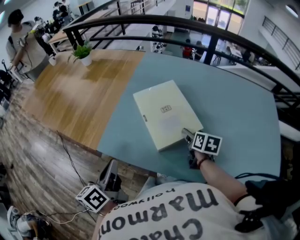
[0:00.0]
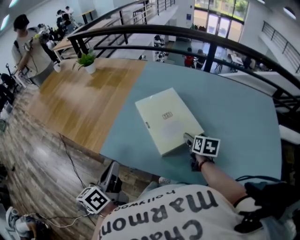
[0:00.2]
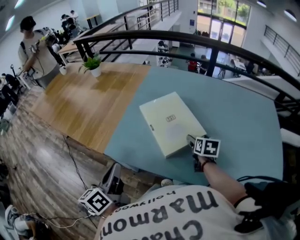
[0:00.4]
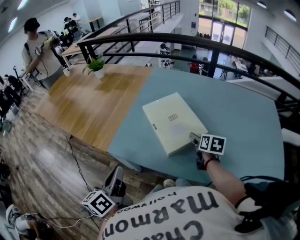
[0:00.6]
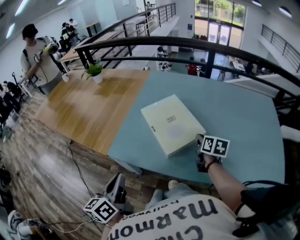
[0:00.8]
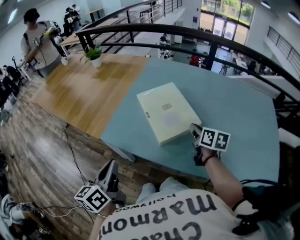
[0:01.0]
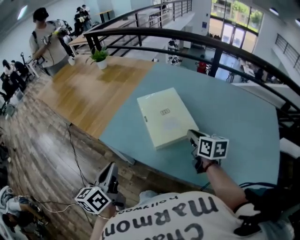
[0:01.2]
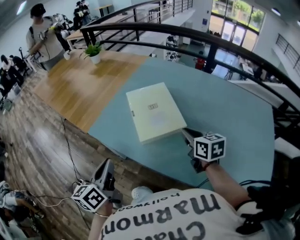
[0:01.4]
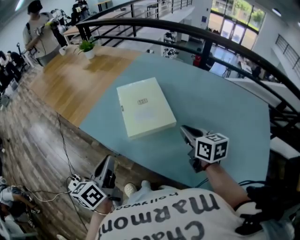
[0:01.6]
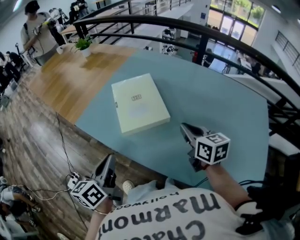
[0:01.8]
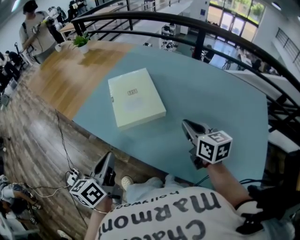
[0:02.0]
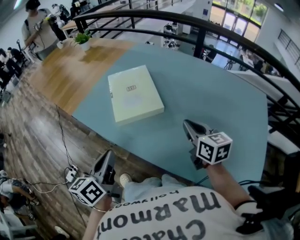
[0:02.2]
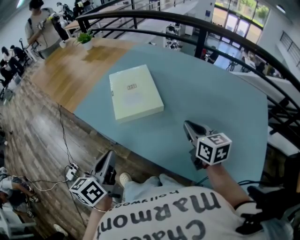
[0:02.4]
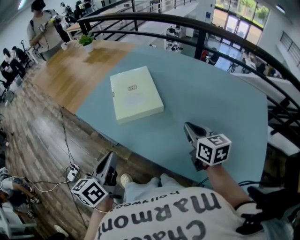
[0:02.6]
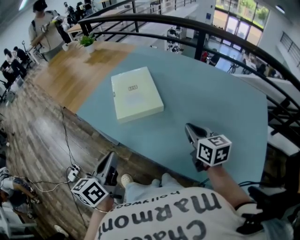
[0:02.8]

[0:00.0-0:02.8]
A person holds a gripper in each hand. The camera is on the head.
0:00.0 to 0:01.4: The left gripper shifts approximately 15 cm to the right and backward; the right gripper heads upward and backward, covering approximately 10 cm, changes its angle by approximately 30 degrees, and closes its fingers.
0:01.4 to 0:02.8: The two grippers go about 15 cm to the right and backward.

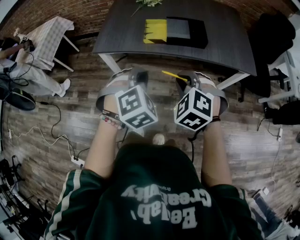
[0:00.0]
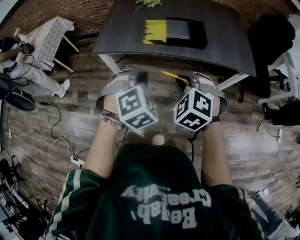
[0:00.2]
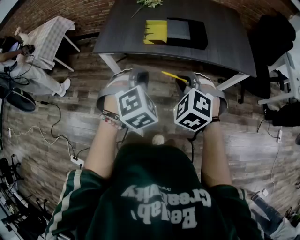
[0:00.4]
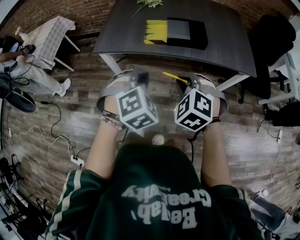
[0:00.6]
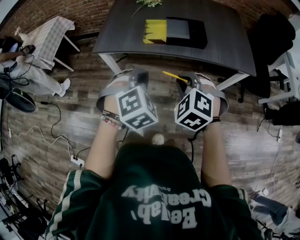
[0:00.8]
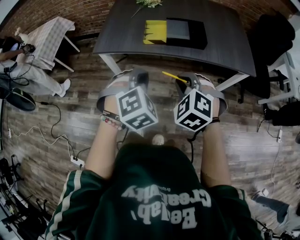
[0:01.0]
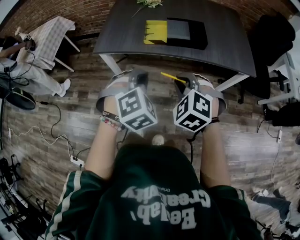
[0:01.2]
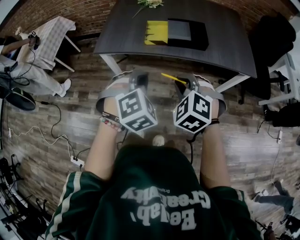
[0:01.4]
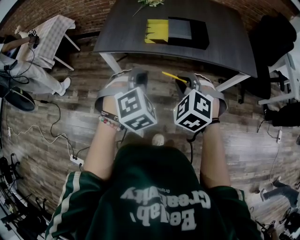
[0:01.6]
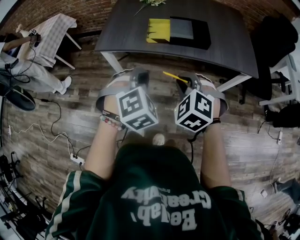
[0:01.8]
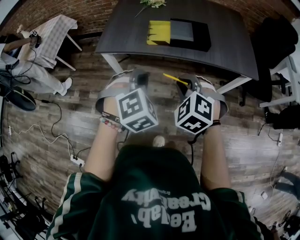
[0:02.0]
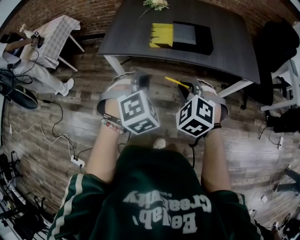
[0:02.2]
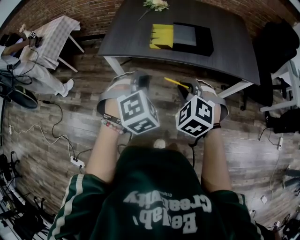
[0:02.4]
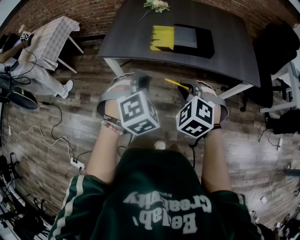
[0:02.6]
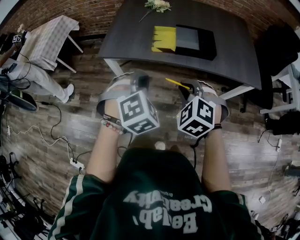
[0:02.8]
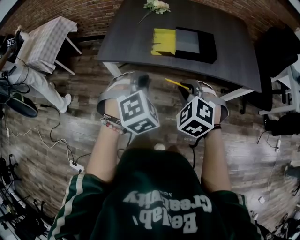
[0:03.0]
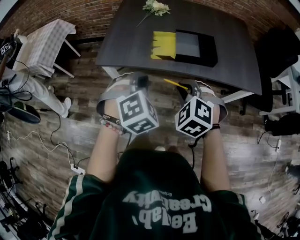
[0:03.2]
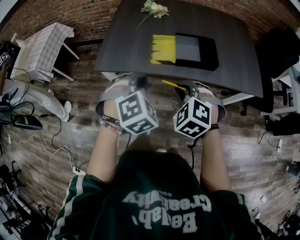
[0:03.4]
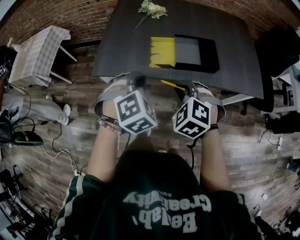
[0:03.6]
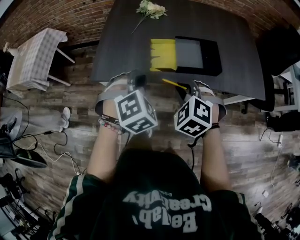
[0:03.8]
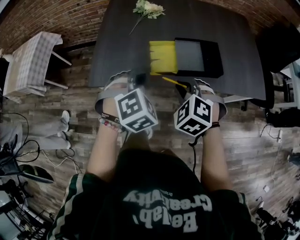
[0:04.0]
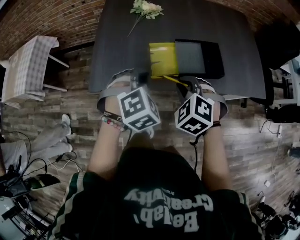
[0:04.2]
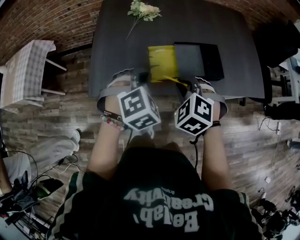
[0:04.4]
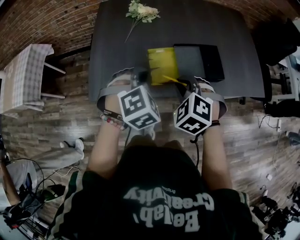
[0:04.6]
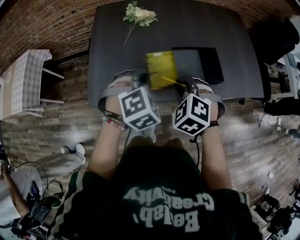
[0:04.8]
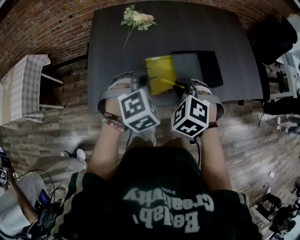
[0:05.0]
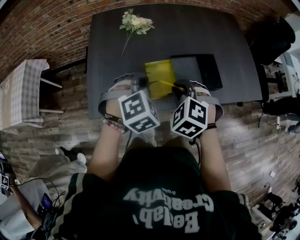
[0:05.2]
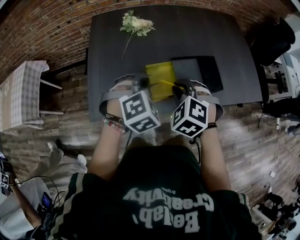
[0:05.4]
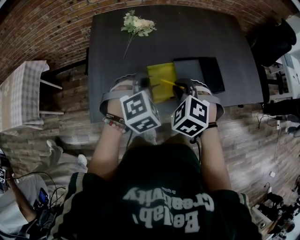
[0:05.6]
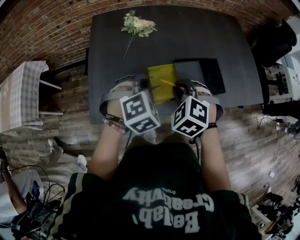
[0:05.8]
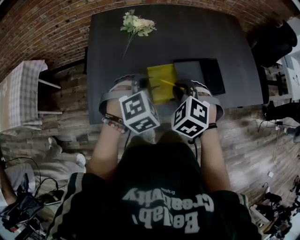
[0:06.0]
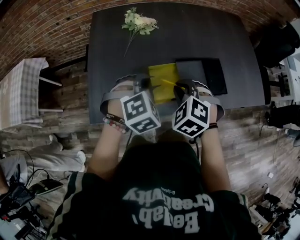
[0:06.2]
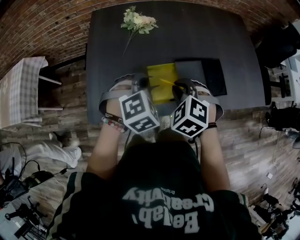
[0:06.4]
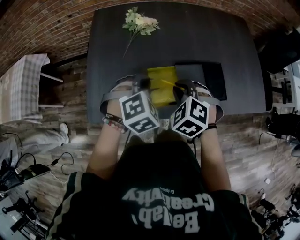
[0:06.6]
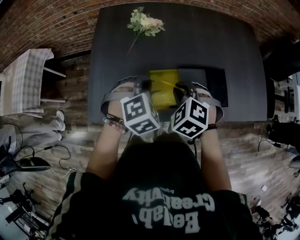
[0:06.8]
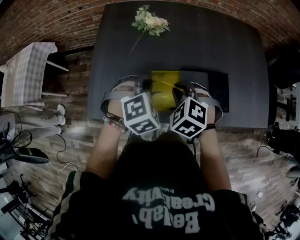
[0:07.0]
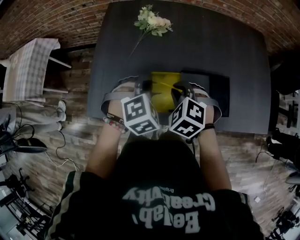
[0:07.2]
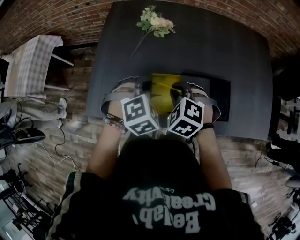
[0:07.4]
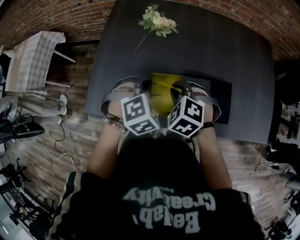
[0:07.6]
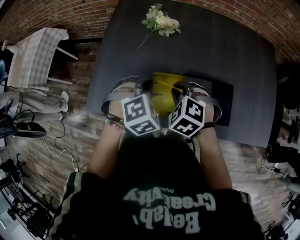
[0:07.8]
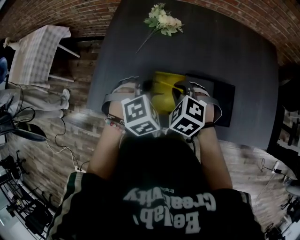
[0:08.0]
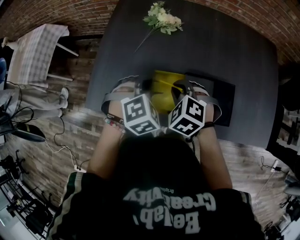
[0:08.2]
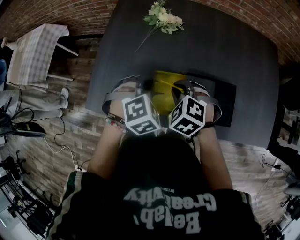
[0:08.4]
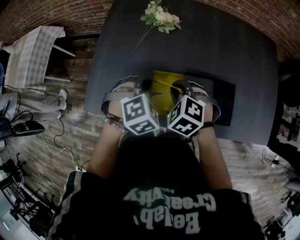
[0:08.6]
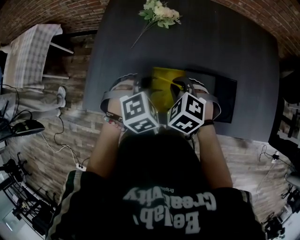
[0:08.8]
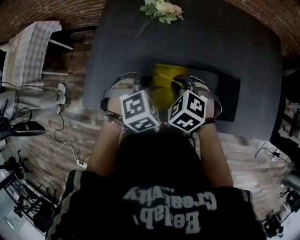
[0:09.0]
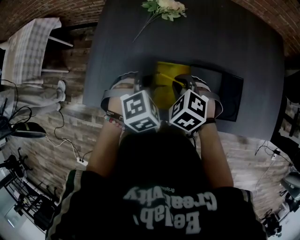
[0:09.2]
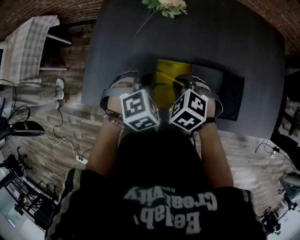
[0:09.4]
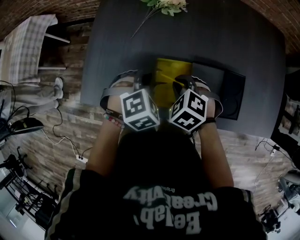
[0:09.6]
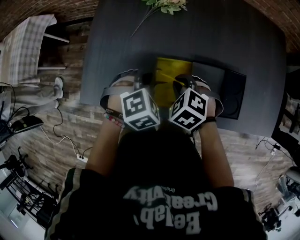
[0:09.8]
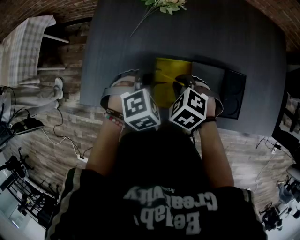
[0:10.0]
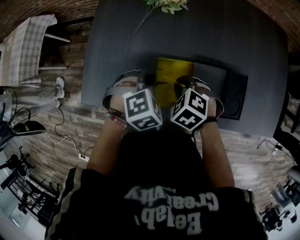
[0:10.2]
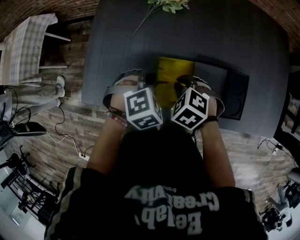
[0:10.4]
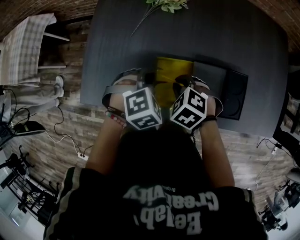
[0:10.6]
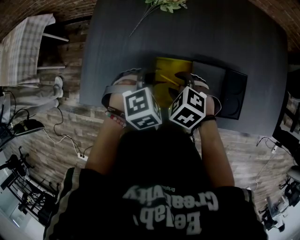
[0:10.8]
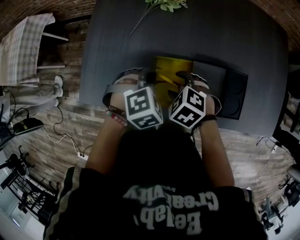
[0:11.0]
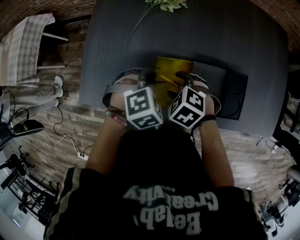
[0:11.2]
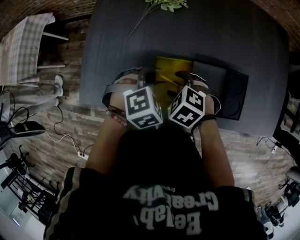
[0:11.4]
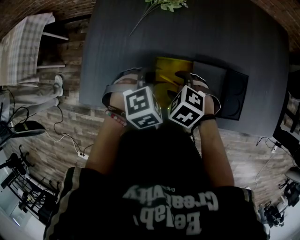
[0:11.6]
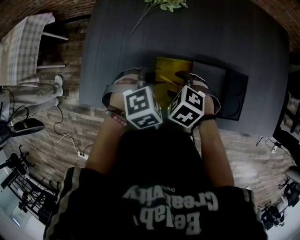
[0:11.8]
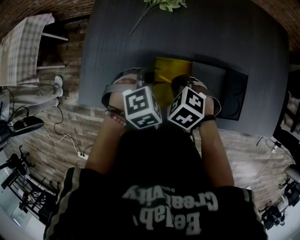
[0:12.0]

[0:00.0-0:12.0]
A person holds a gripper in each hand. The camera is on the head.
0:00.0 to 0:01.6: Both grippers stay about where they are.
0:01.6 to 0:03.0: The grippers both shift forward by approximately 5 cm.
0:03.0 to 0:04.4: The two grippers go about 25 cm forward.
0:04.4 to 0:06.0: Both grippers move forward, about 10 cm.
0:06.0 to 0:07.6: The right gripper shifts about 10 cm forward and downward, while the left gripper travels forward by about 5 cm.
0:07.6 to 0:09.0: There are only small adjustments of the grippers.
0:09.0 to 0:10.4: The right gripper is displaced downward by some 5 cm.
0:10.4 to 0:12.0: The right gripper opens, then closes once more.

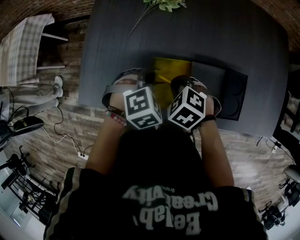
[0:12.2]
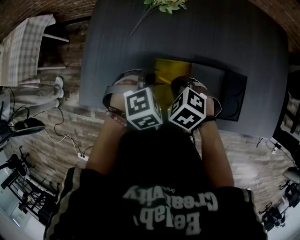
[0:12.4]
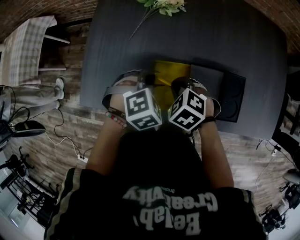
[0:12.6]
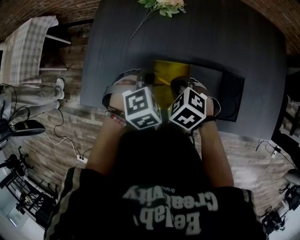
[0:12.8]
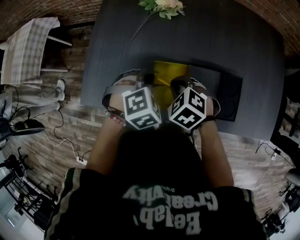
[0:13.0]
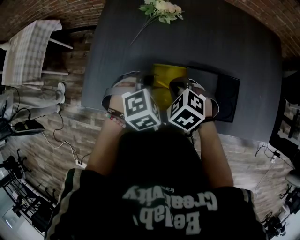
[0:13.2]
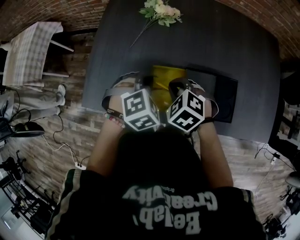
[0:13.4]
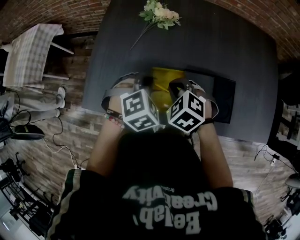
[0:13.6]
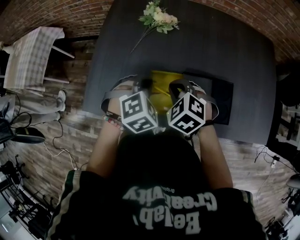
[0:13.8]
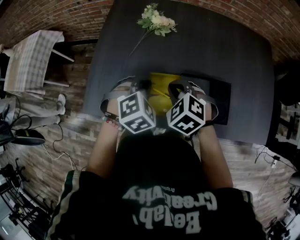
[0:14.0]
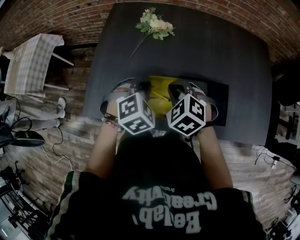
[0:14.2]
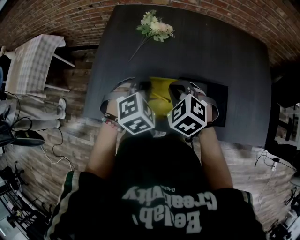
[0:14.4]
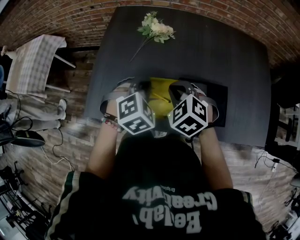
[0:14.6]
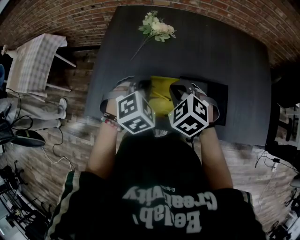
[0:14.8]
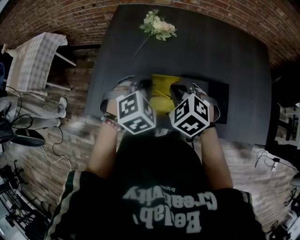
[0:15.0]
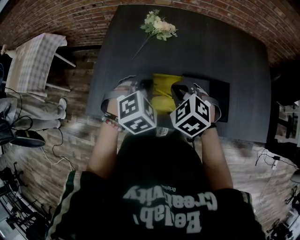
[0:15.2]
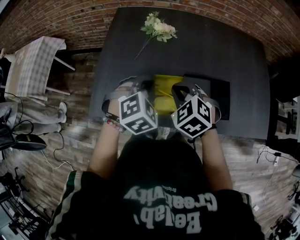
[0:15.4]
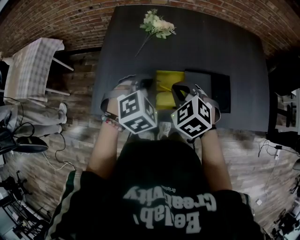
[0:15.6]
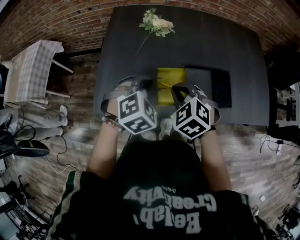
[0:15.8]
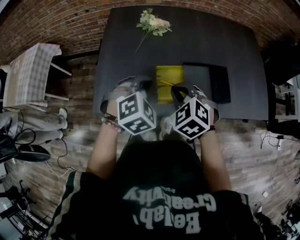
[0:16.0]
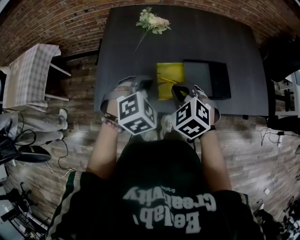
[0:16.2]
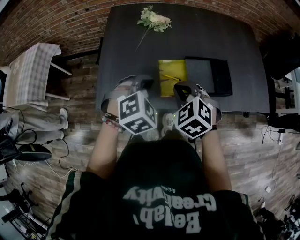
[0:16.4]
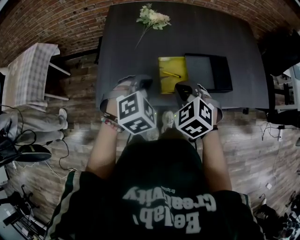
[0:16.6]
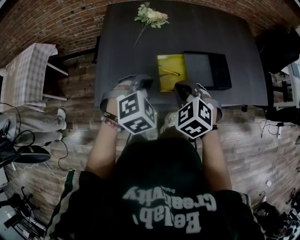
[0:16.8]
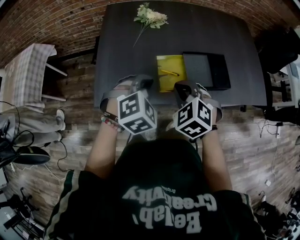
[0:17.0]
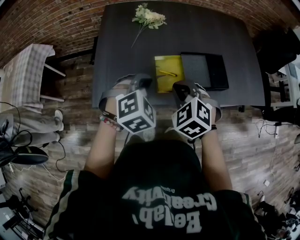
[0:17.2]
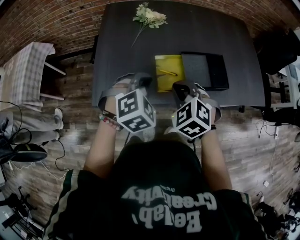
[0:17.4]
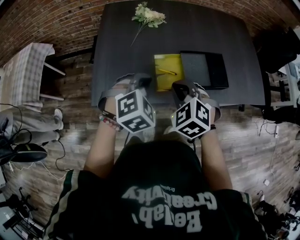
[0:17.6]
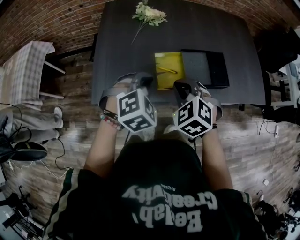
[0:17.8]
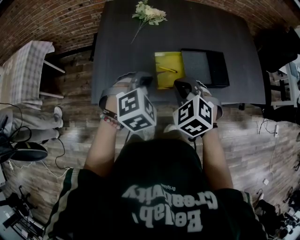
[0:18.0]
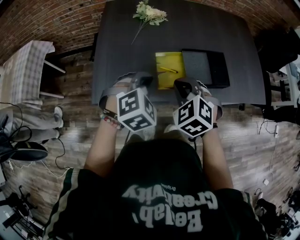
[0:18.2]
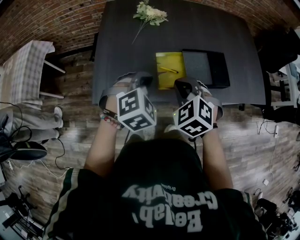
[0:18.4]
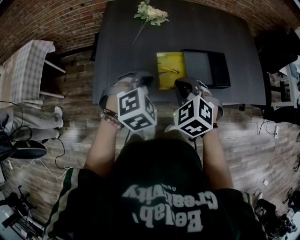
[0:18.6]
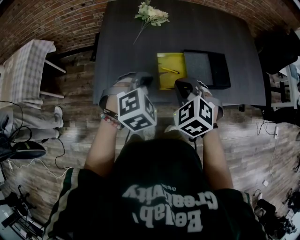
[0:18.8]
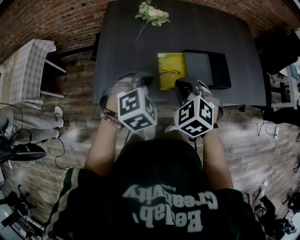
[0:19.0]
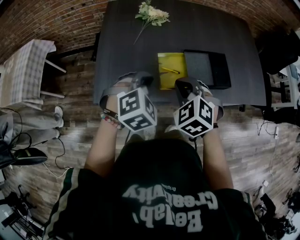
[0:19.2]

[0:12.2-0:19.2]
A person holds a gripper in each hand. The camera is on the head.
0:12.2 to 0:13.6: The two grippers go roughly 5 cm upward.
0:13.6 to 0:15.0: Both grippers move upward, roughly 5 cm.
0:15.0 to 0:16.4: The two grippers go approximately 10 cm backward and to the left.
0:16.4 to 0:17.8: The grippers make only small movements.
0:17.8 to 0:19.2: Neither gripper changes place.

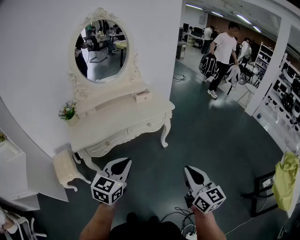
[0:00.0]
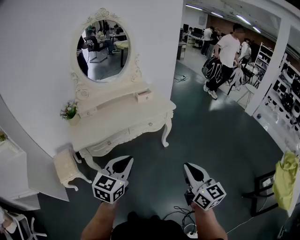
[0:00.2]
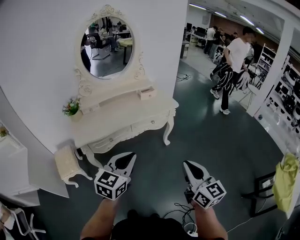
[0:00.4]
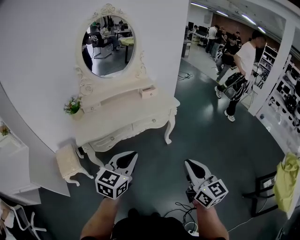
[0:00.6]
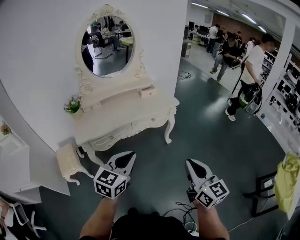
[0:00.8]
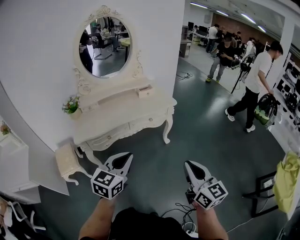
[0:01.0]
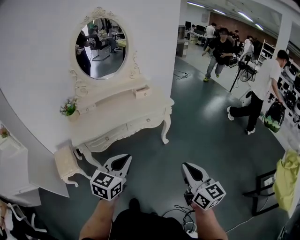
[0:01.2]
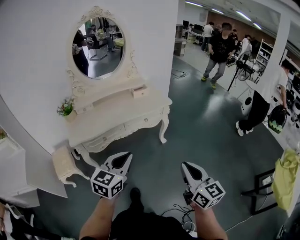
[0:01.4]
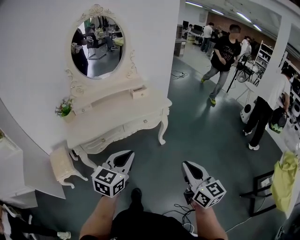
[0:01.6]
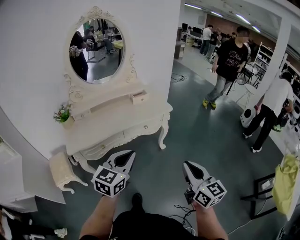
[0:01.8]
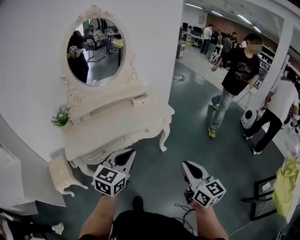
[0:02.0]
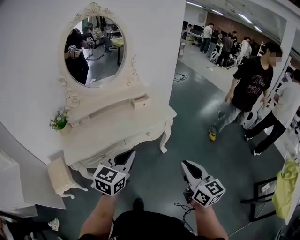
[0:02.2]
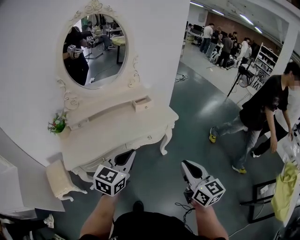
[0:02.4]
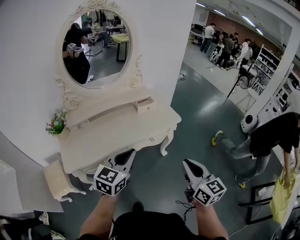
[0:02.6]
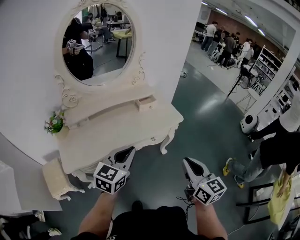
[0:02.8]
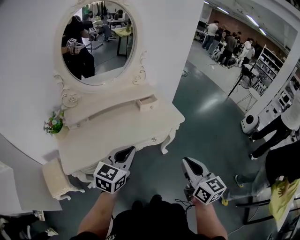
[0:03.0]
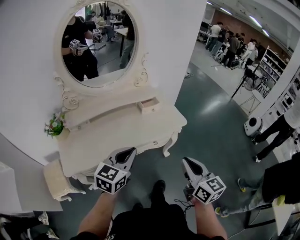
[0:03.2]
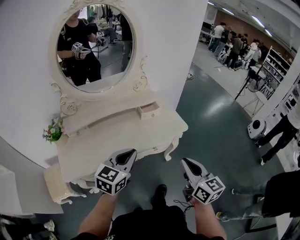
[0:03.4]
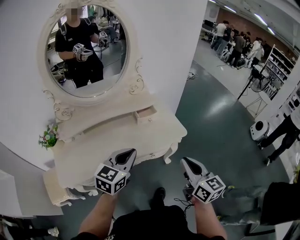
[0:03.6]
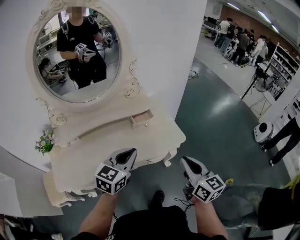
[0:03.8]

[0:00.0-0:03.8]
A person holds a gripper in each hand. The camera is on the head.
0:00.0 to 0:01.2: The grippers move only a little.
0:01.2 to 0:02.6: Both grippers move forward, approximately 25 cm.
0:02.6 to 0:03.8: The two grippers go approximately 25 cm forward.
